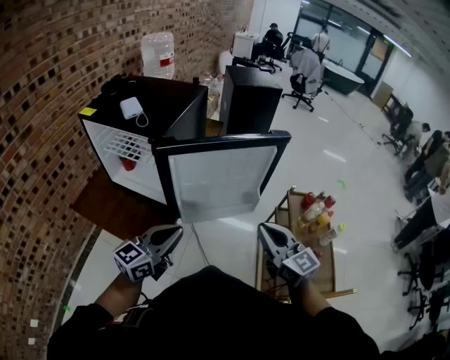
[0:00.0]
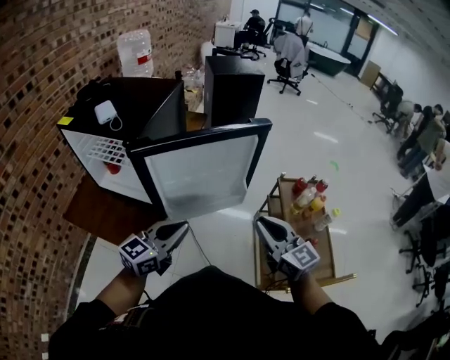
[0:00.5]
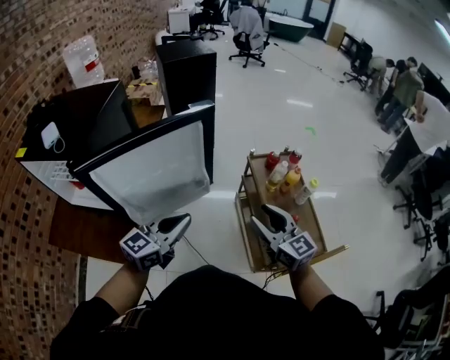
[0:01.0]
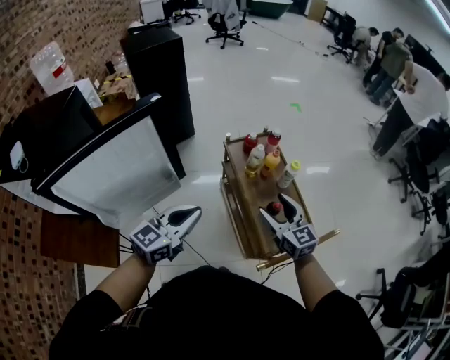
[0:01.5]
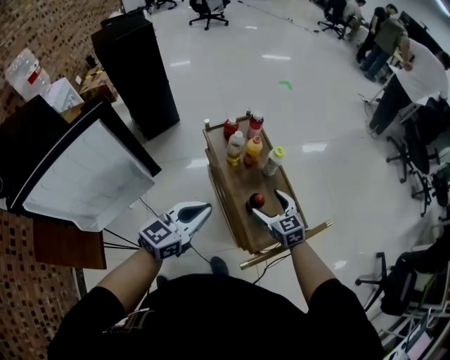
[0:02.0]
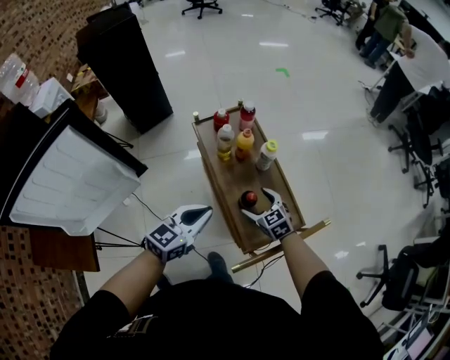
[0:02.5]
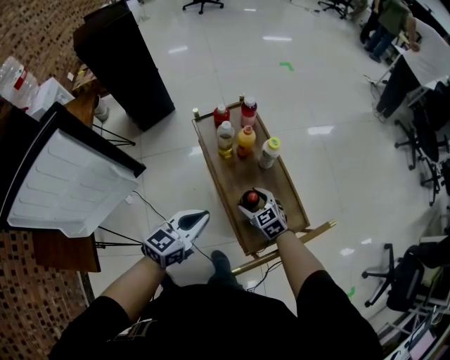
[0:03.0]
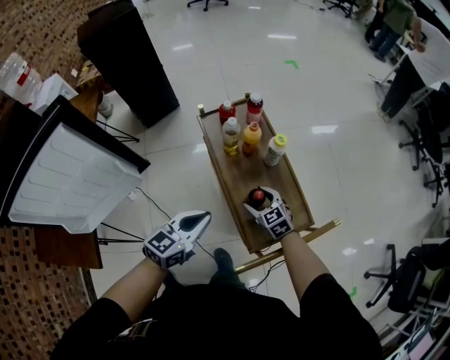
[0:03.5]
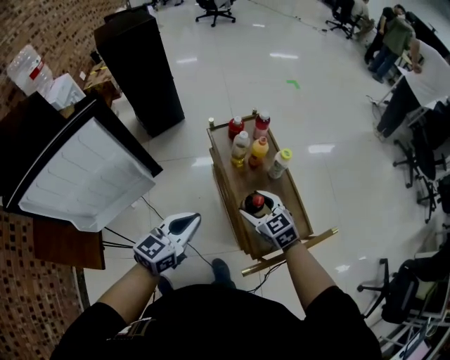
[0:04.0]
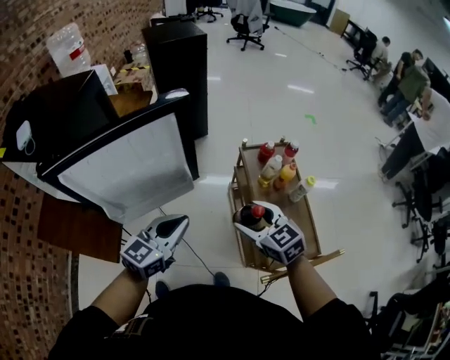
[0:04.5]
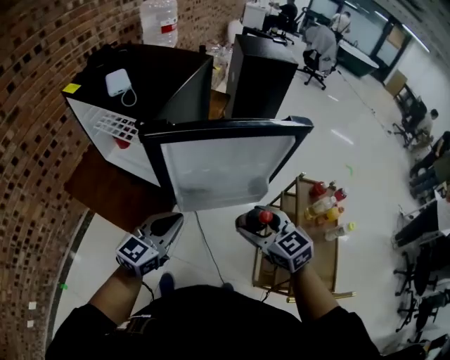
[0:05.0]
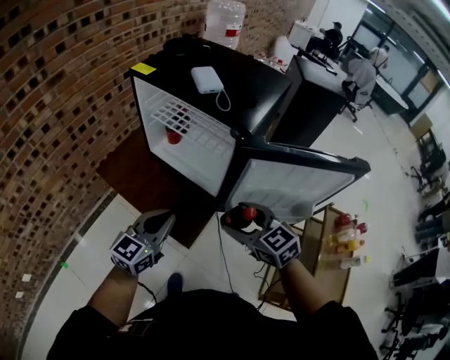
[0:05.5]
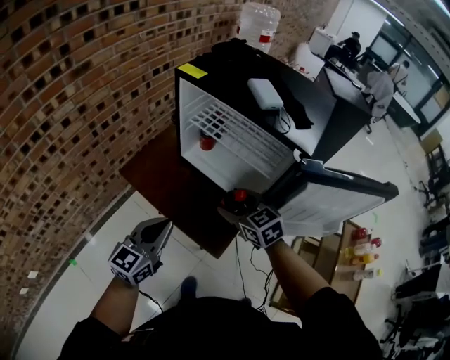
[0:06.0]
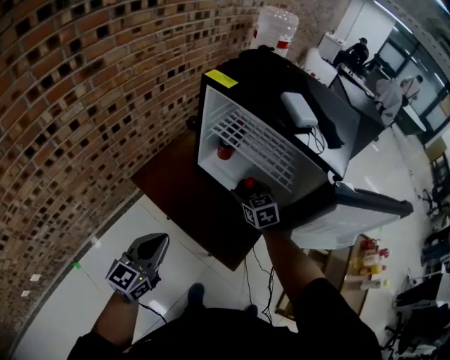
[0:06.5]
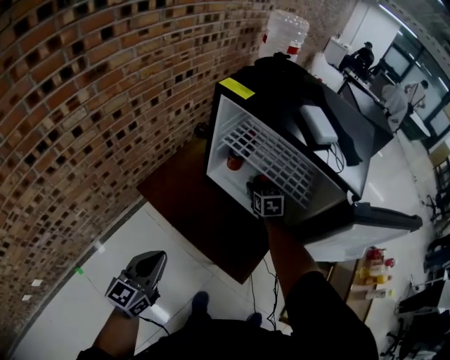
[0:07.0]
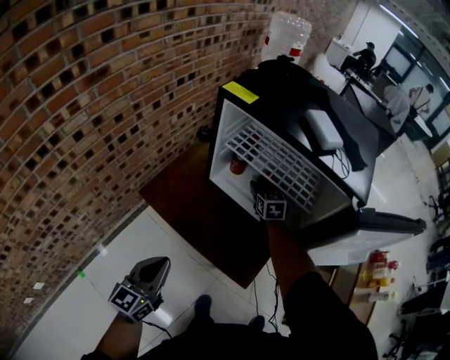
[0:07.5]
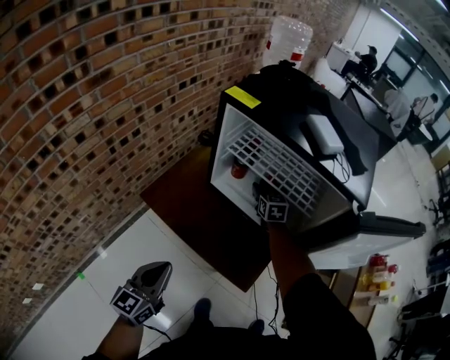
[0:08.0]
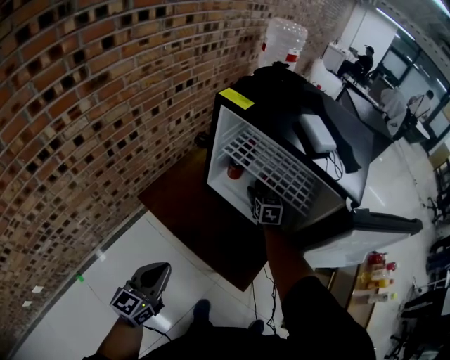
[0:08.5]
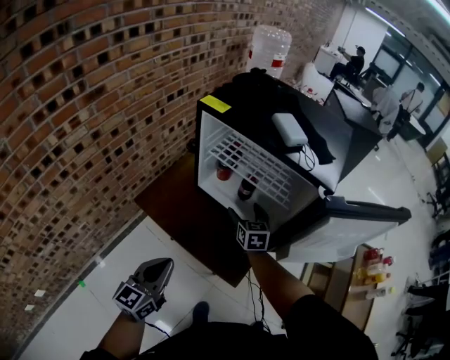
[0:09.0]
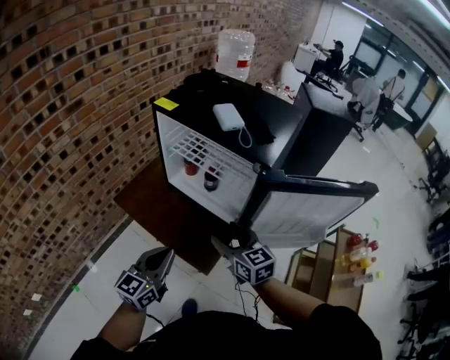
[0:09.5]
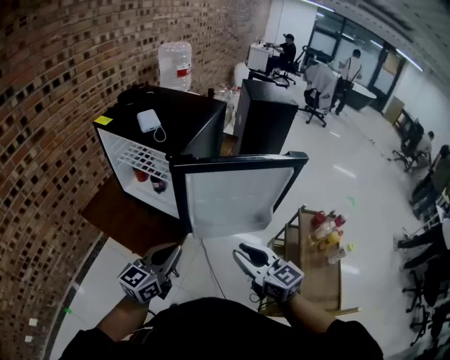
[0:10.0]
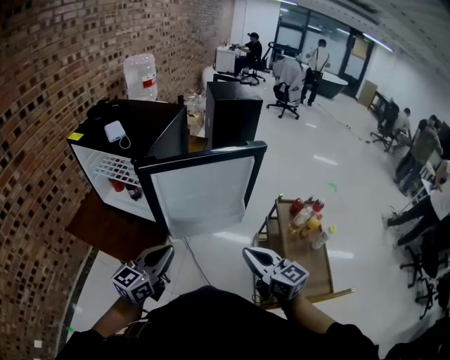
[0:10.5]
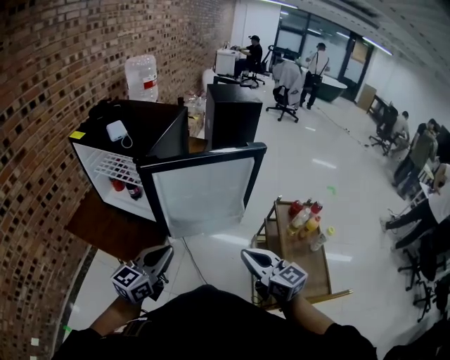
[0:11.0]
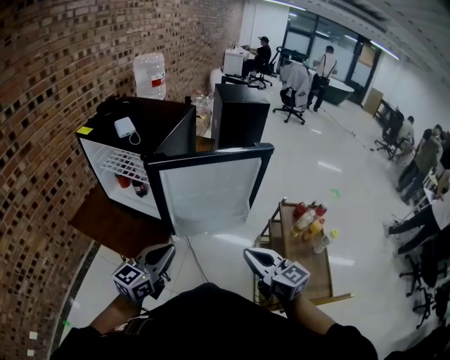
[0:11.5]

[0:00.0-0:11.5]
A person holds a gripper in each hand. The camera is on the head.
0:00.0 to 0:02.0: Both grippers are carried about 40 cm. The right gripper turns by roughly 40 degrees, and opens its fingers. Meanwhile the left gripper swivels approximately 30 degrees.
0:02.0 to 0:04.0: The right gripper moves to the left, roughly 5 cm, and goes downward and returns, roughly 10 cm each way.
0:04.0 to 0:06.0: The two grippers travel together, roughly 80 cm. The right gripper rotates some 40 degrees. The left gripper changes its angle by some 50 degrees.
0:06.0 to 0:07.5: The left gripper moves to the left, roughly 10 cm; the right gripper is displaced forward and downward by about 25 cm, and changes its angle by approximately 30 degrees.
0:07.5 to 0:09.5: The right gripper travels backward and upward by about 35 cm, and changes its angle by roughly 30 degrees; the left gripper heads to the right, covering about 15 cm.
0:09.5 to 0:11.5: The right gripper shifts approximately 40 cm to the right and backward, and closes. Meanwhile the left gripper is displaced to the right by some 25 cm, and turns by roughly 20 degrees.

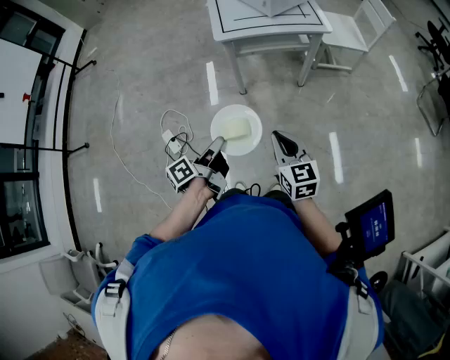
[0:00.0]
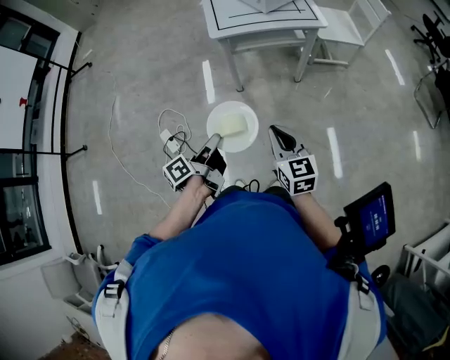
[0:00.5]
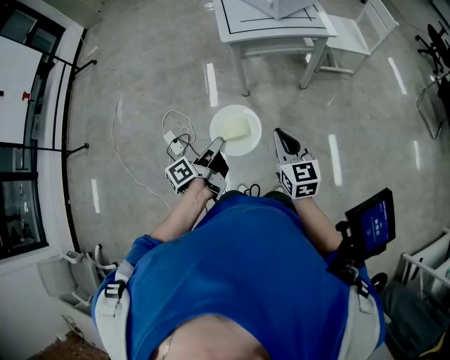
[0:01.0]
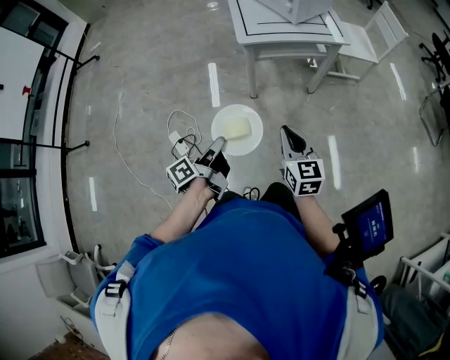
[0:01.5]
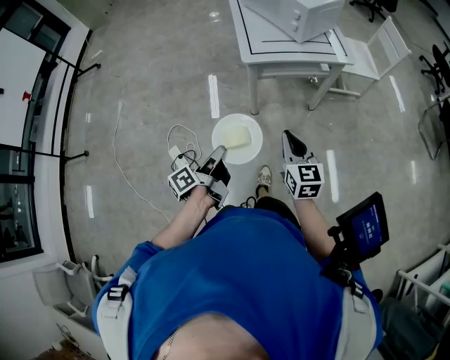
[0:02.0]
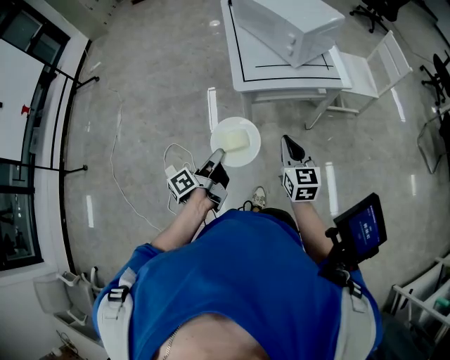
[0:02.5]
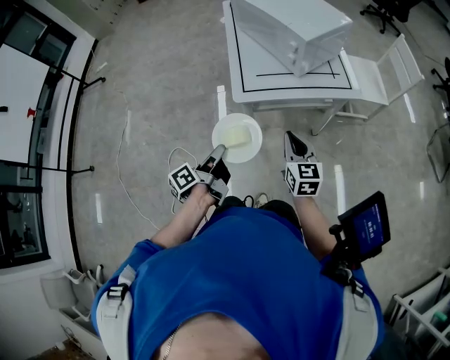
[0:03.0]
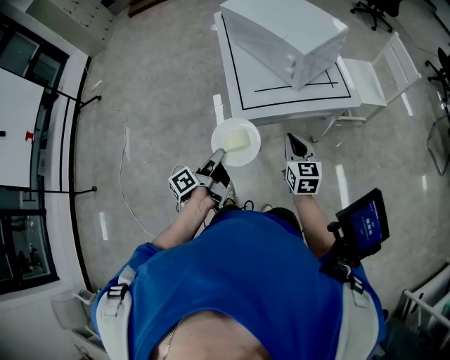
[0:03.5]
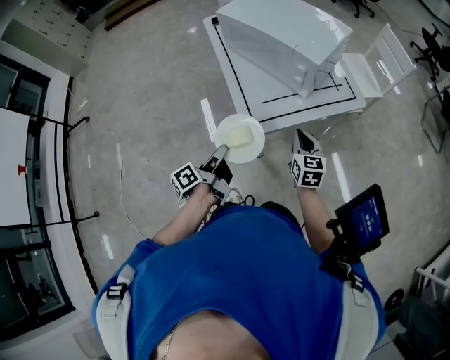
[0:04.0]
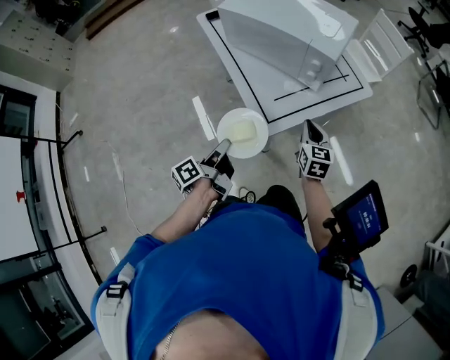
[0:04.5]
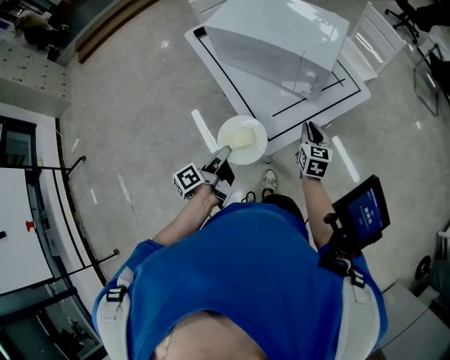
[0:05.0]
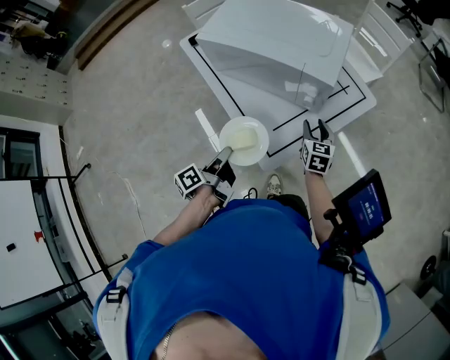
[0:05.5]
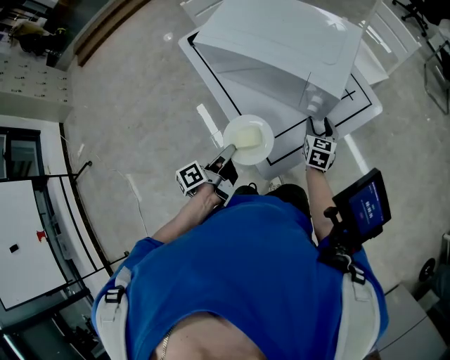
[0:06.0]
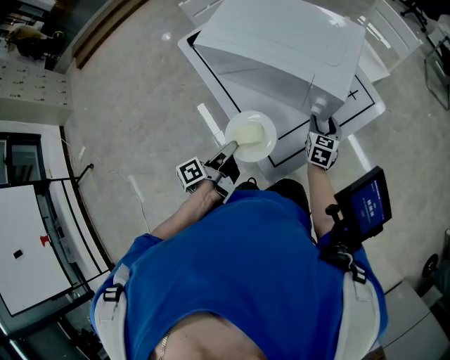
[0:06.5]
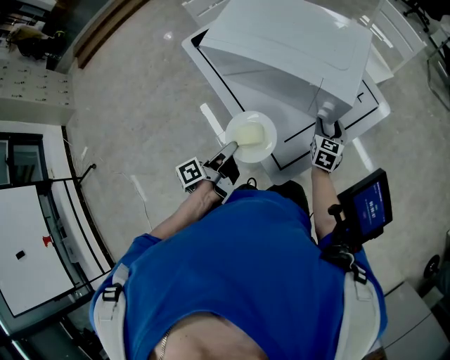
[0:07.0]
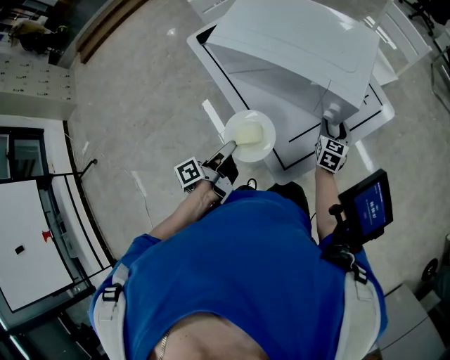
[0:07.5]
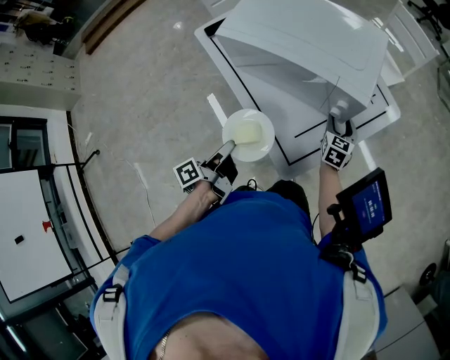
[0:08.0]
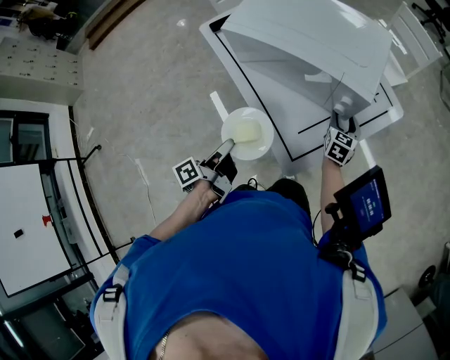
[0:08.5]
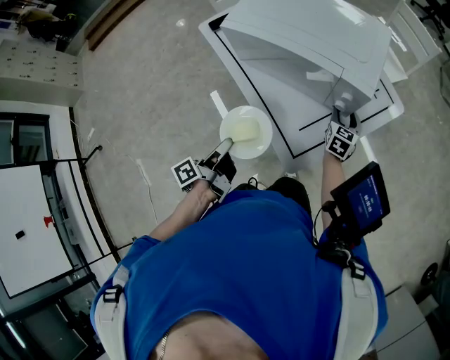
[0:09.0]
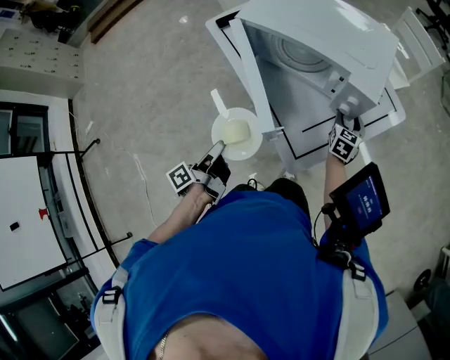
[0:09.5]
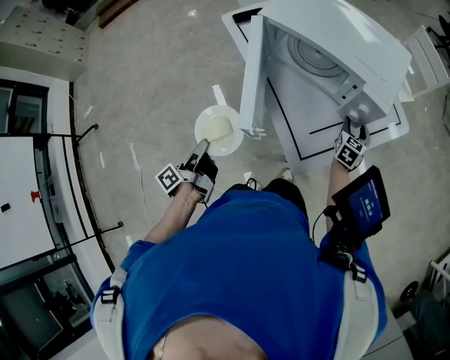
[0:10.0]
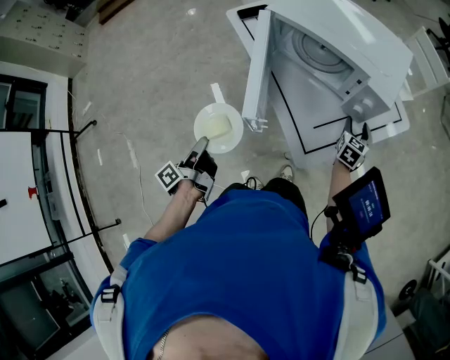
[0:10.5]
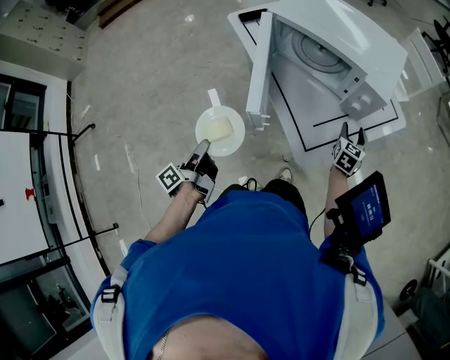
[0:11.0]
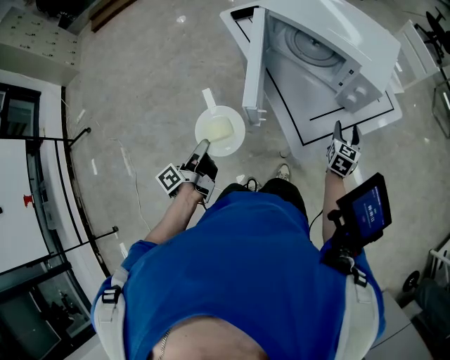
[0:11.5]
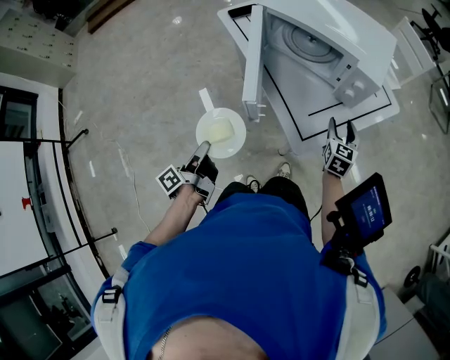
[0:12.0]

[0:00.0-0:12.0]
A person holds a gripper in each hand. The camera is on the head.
0:00.0 to 0:02.0: The left gripper shifts some 15 cm to the left and forward, while the right gripper moves forward and to the left, some 15 cm.
0:02.0 to 0:04.0: Both grippers move forward, some 35 cm.
0:04.0 to 0:06.0: The left gripper heads forward and to the left, covering roughly 20 cm. The right gripper shifts about 20 cm forward and downward, swivels roughly 30 degrees, and opens up.
0:06.0 to 0:08.0: The left gripper is displaced to the left by some 5 cm.
0:08.0 to 0:10.0: The left gripper is displaced to the left and backward by some 15 cm.
0:10.0 to 0:12.0: The right gripper heads backward and upward, covering approximately 10 cm. Meanwhile the left gripper is displaced backward by approximately 5 cm.

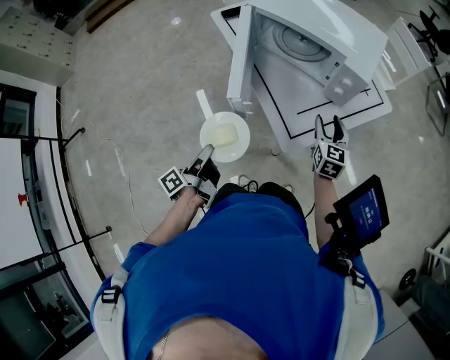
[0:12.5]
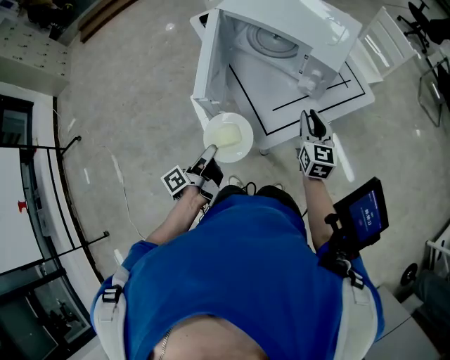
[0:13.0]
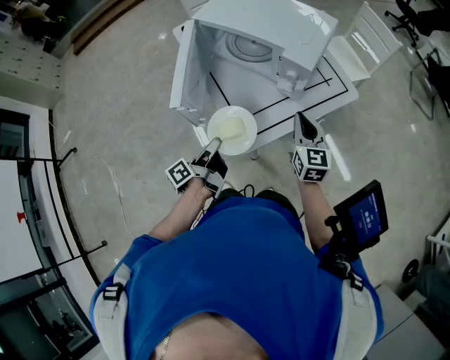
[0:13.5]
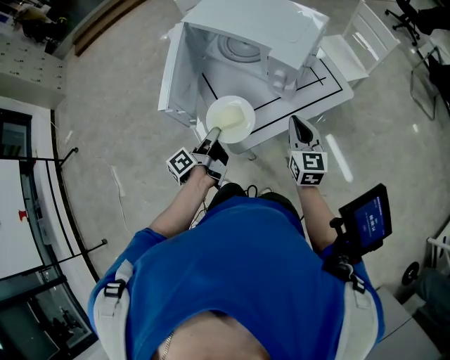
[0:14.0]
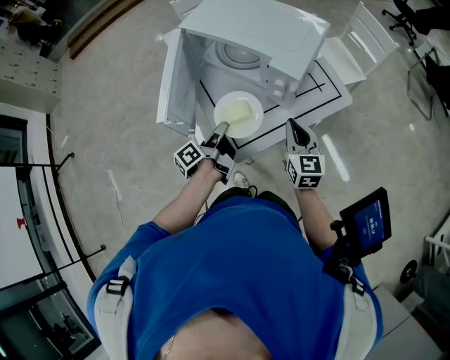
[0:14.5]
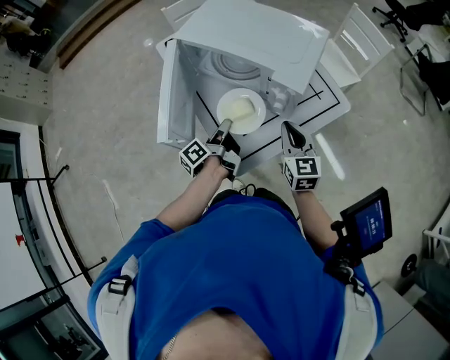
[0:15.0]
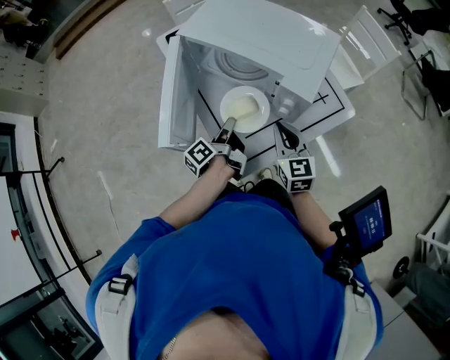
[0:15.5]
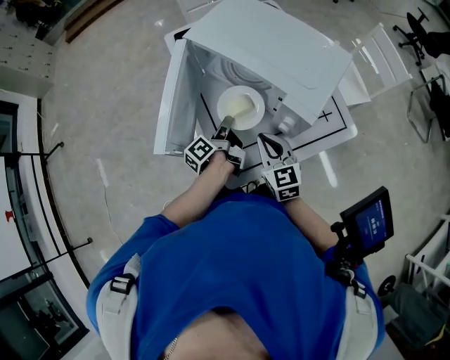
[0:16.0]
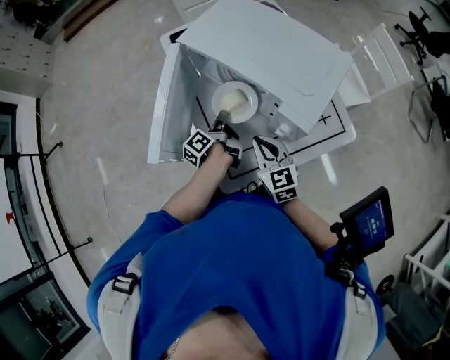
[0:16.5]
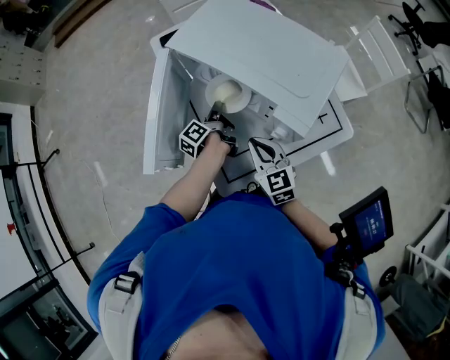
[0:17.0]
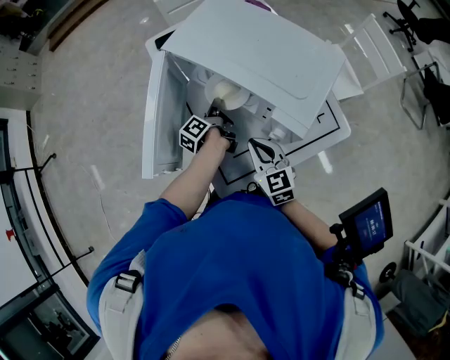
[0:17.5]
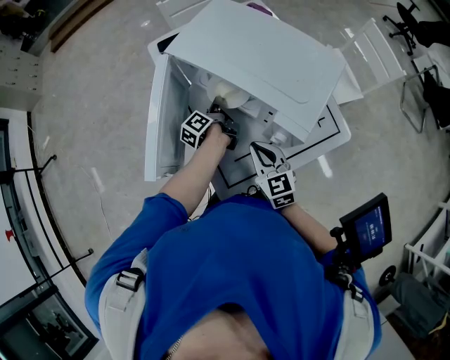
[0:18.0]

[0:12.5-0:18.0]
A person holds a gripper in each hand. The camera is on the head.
0:12.5 to 0:14.5: The left gripper travels to the right and forward by roughly 25 cm. The right gripper goes some 5 cm to the right, and closes up.
0:14.5 to 0:16.0: The left gripper moves forward, roughly 10 cm. Meanwhile the right gripper moves to the left and forward, approximately 10 cm, and turns by some 20 degrees.
0:16.0 to 0:18.0: The left gripper goes roughly 10 cm forward.
